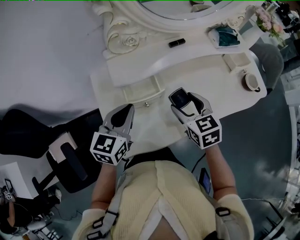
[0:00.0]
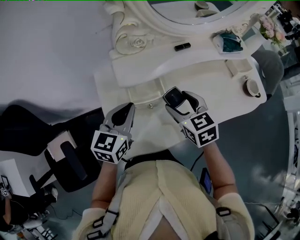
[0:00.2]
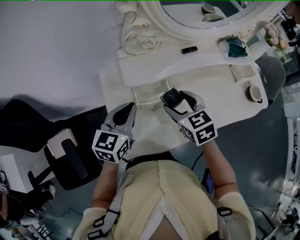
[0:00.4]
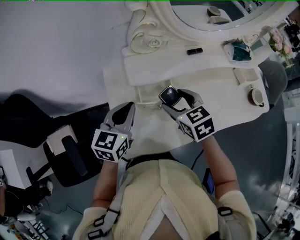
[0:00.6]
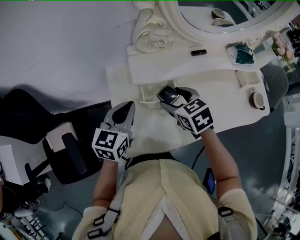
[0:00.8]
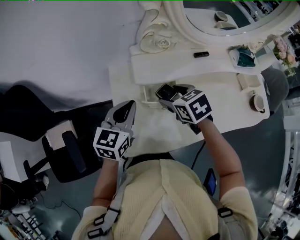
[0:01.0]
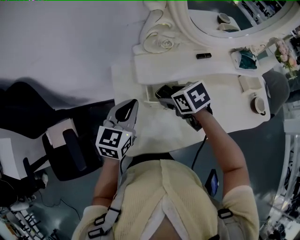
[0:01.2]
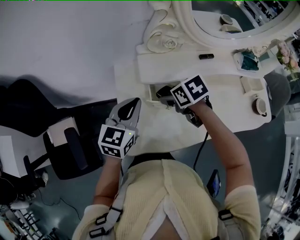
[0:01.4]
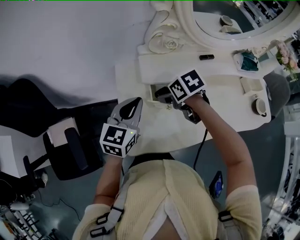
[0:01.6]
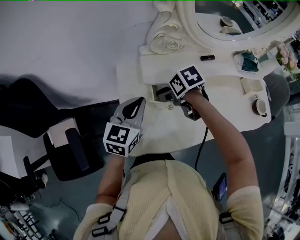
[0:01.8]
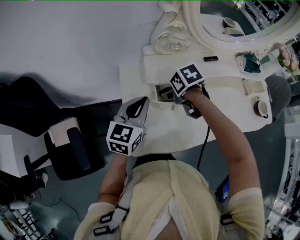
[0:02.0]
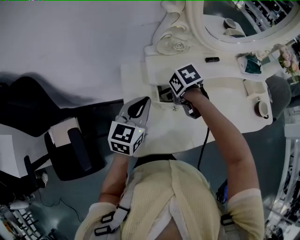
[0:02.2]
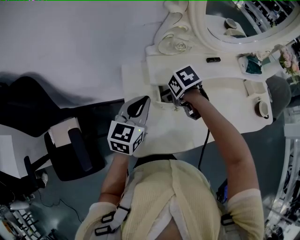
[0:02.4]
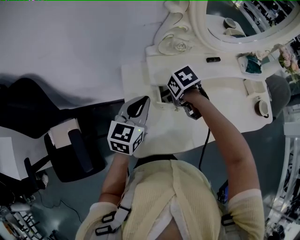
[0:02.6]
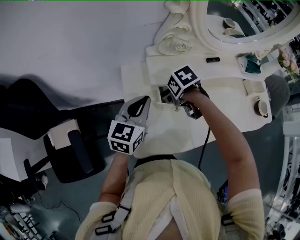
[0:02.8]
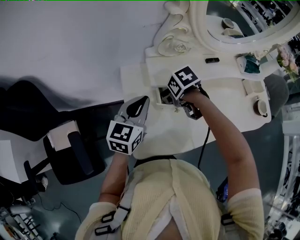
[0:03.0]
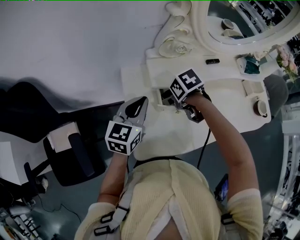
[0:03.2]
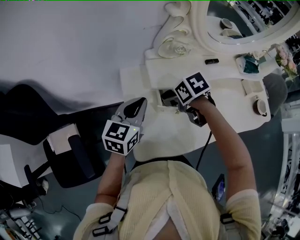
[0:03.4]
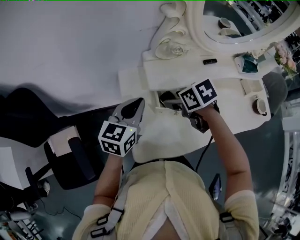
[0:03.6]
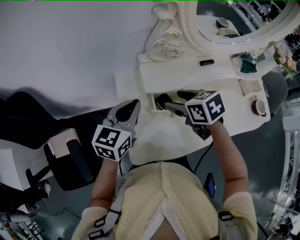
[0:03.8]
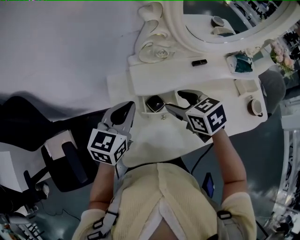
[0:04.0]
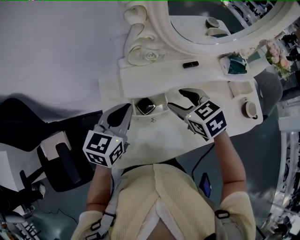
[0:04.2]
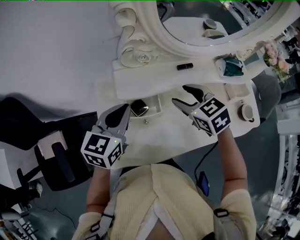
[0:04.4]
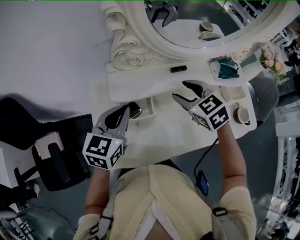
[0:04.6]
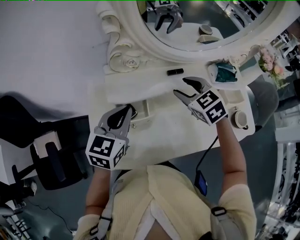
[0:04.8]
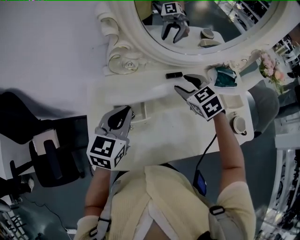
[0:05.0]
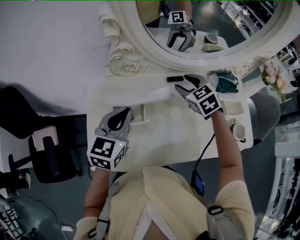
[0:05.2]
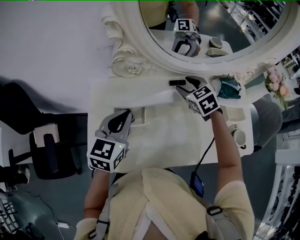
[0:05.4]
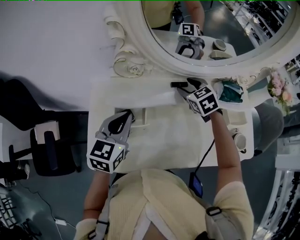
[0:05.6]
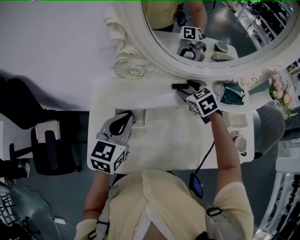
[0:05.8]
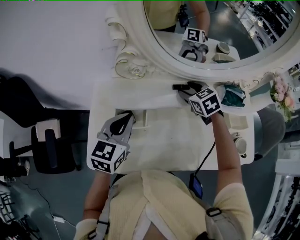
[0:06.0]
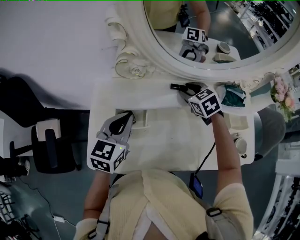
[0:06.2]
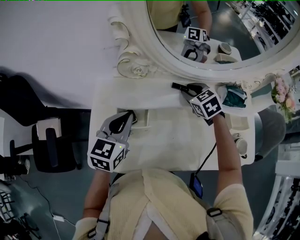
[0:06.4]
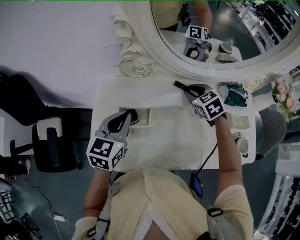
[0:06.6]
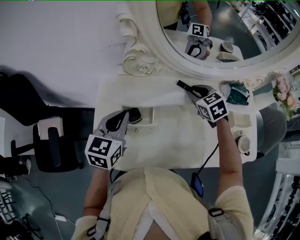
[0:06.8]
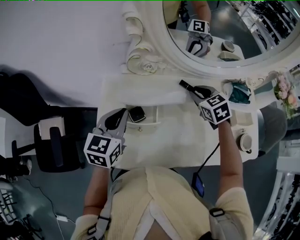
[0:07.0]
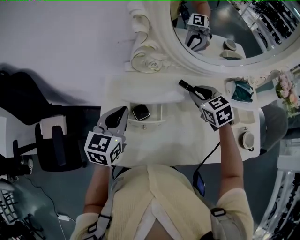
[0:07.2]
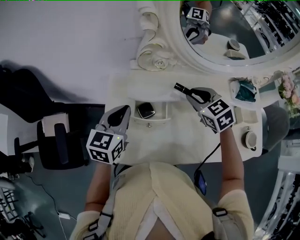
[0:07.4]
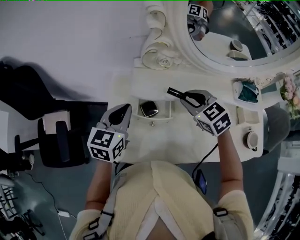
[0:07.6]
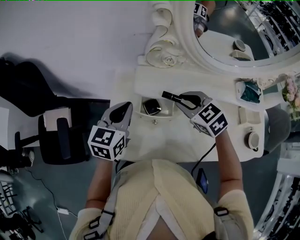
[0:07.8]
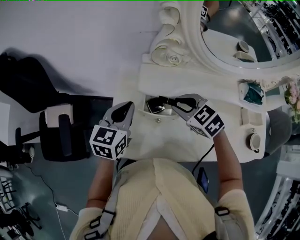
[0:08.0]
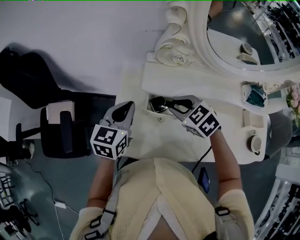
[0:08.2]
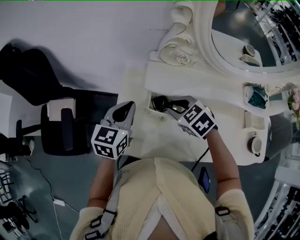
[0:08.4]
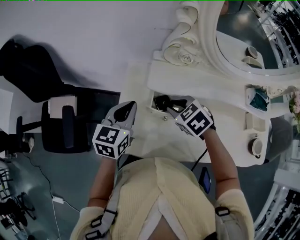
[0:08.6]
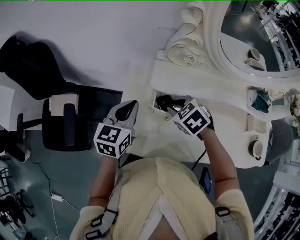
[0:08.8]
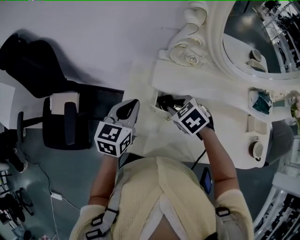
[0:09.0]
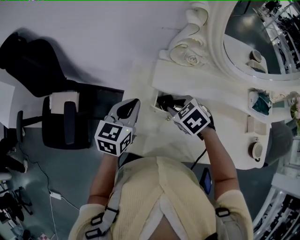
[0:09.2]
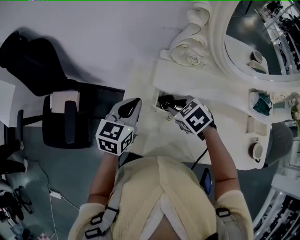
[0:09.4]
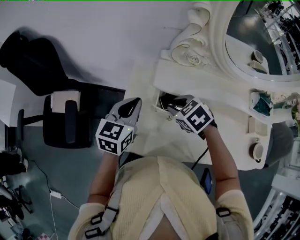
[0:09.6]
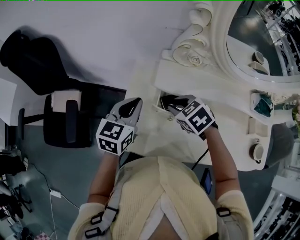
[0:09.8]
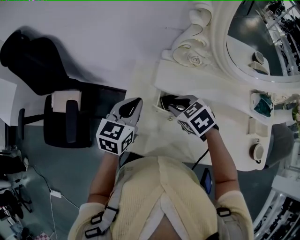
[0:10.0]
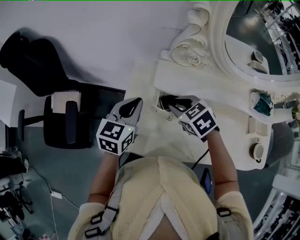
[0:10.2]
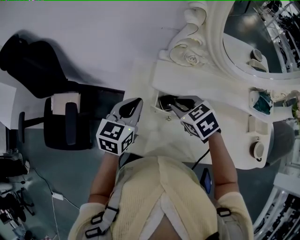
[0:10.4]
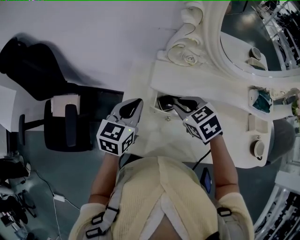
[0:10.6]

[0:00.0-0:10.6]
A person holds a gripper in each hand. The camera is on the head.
0:00.0 to 0:01.6: The right gripper changes place by roughly 15 cm, and turns by roughly 40 degrees, while the left gripper shifts by about 5 cm.
0:01.6 to 0:03.0: The grippers stay close to where they were, moving slightly.
0:03.0 to 0:04.6: The left gripper is displaced to the right by about 10 cm. Meanwhile the right gripper is displaced to the right and upward by approximately 20 cm, and angles its fingers upward, by approximately 30 degrees.
0:04.6 to 0:06.0: The right gripper shifts approximately 15 cm forward, downward and to the right.
0:06.0 to 0:07.6: The left gripper is displaced to the left by some 10 cm; the right gripper heads to the left and backward, covering approximately 15 cm, and closes up.
0:07.6 to 0:09.0: The right gripper heads to the left and downward, covering about 15 cm, and changes its angle by about 20 degrees, while the left gripper shifts by approximately 5 cm.
0:09.0 to 0:10.6: The grippers stay close to where they were, moving slightly.

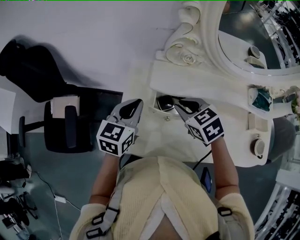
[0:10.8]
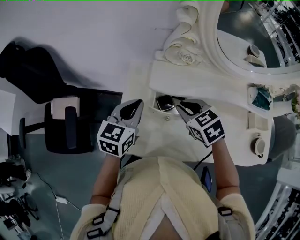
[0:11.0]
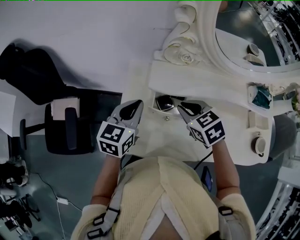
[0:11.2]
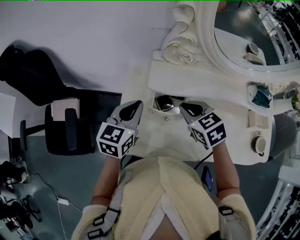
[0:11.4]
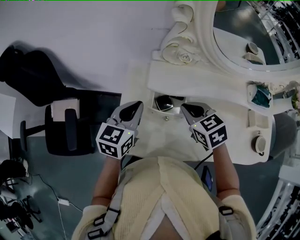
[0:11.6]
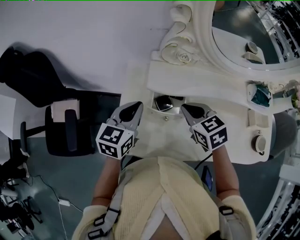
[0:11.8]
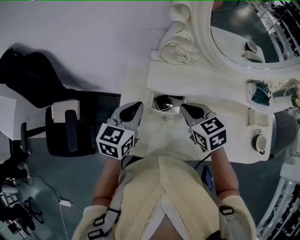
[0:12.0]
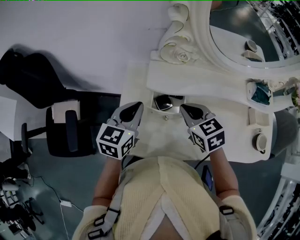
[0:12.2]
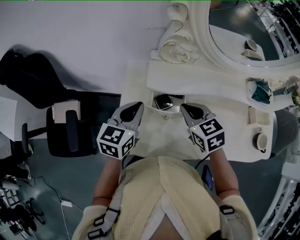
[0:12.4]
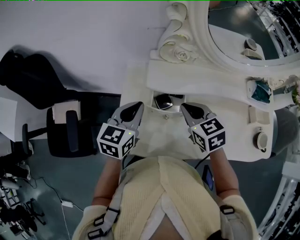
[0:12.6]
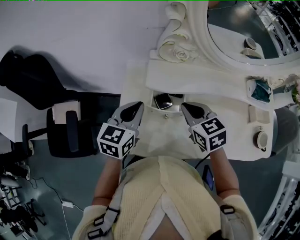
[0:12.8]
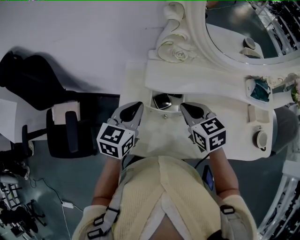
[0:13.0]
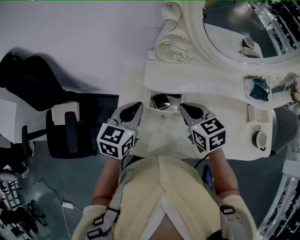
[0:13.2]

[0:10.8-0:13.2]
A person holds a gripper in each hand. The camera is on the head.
0:10.8 to 0:13.2: The grippers stay close to where they were, moving slightly.

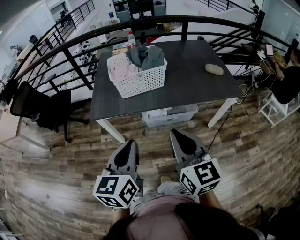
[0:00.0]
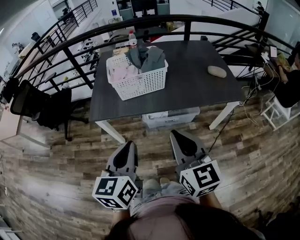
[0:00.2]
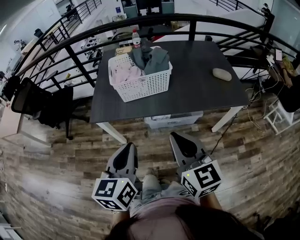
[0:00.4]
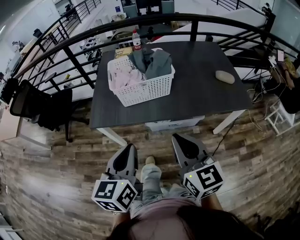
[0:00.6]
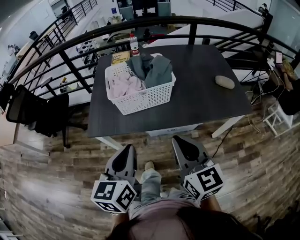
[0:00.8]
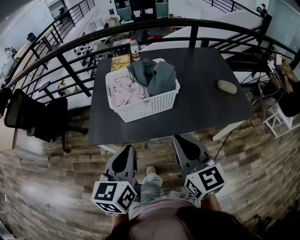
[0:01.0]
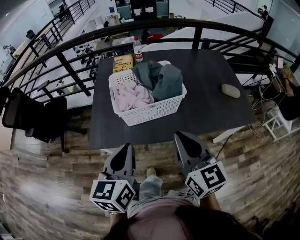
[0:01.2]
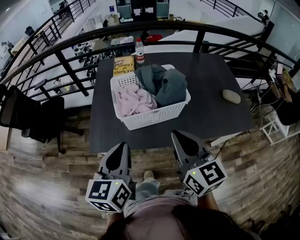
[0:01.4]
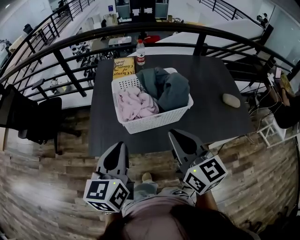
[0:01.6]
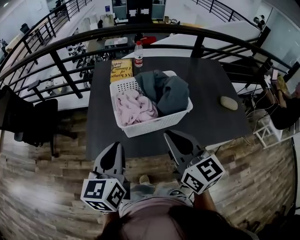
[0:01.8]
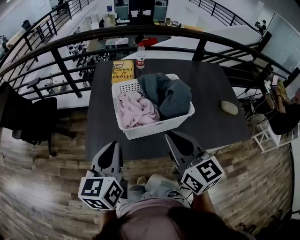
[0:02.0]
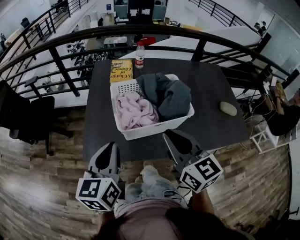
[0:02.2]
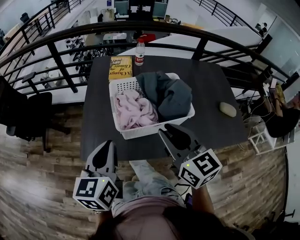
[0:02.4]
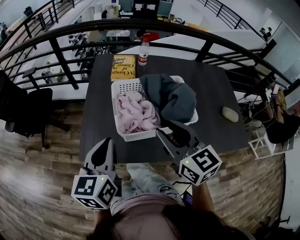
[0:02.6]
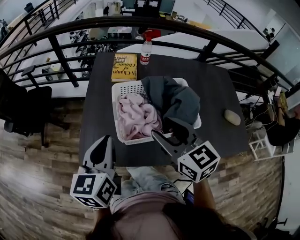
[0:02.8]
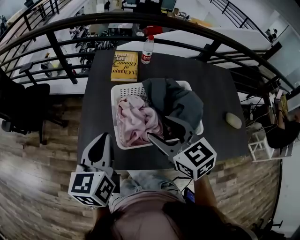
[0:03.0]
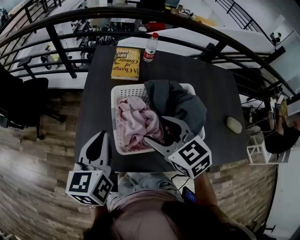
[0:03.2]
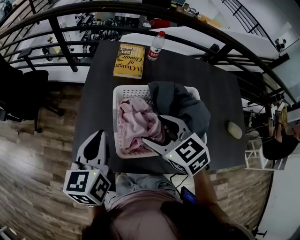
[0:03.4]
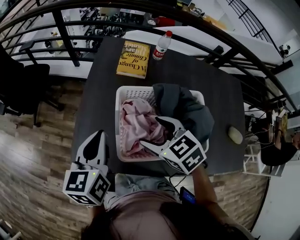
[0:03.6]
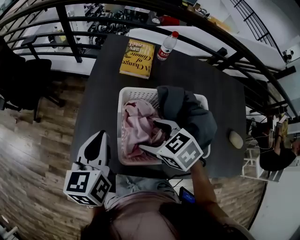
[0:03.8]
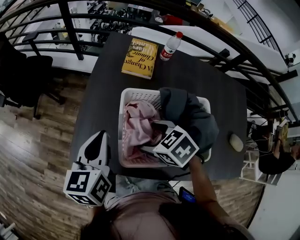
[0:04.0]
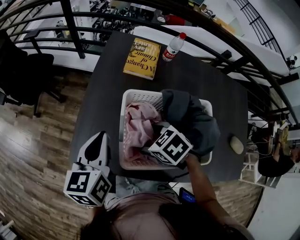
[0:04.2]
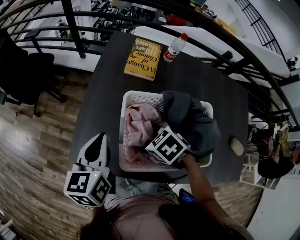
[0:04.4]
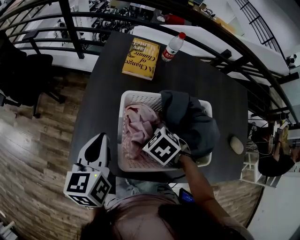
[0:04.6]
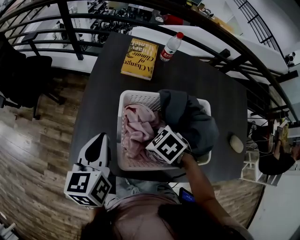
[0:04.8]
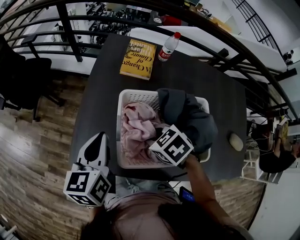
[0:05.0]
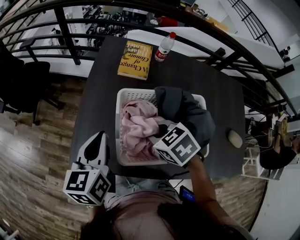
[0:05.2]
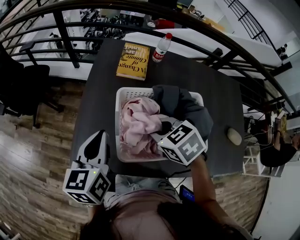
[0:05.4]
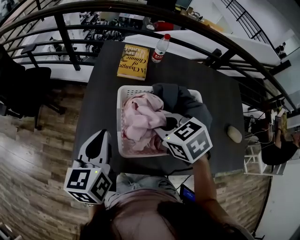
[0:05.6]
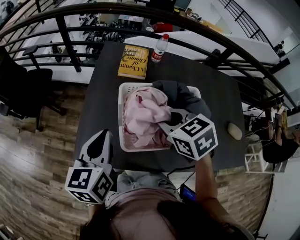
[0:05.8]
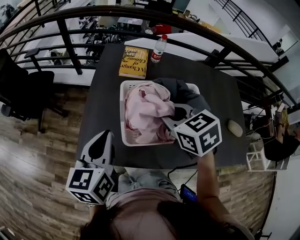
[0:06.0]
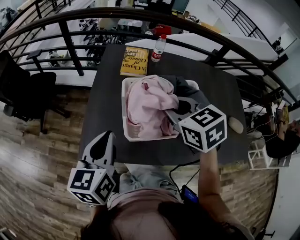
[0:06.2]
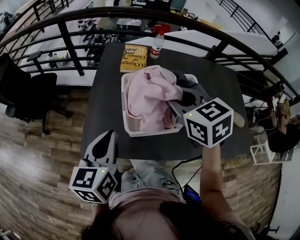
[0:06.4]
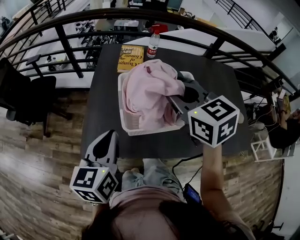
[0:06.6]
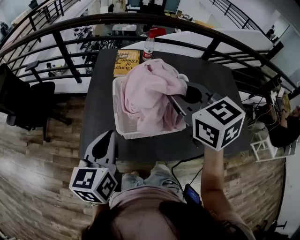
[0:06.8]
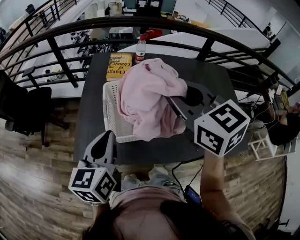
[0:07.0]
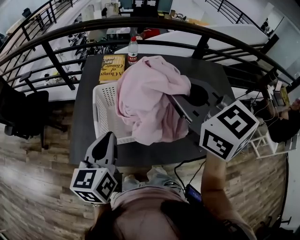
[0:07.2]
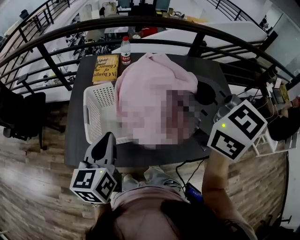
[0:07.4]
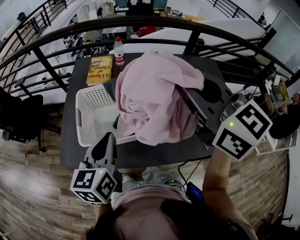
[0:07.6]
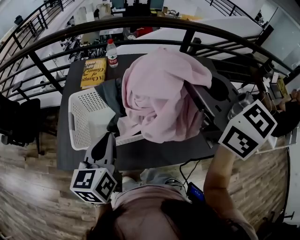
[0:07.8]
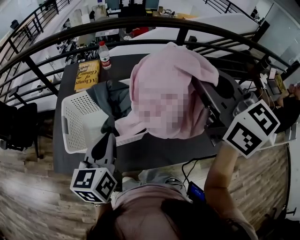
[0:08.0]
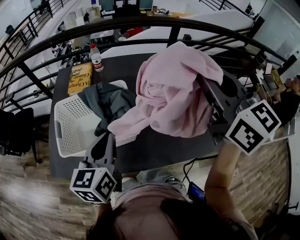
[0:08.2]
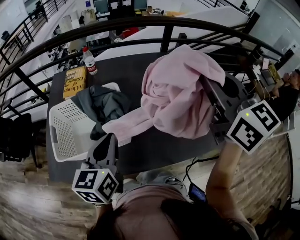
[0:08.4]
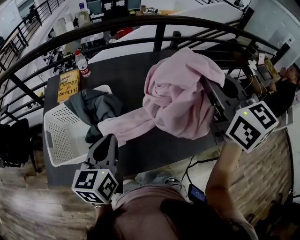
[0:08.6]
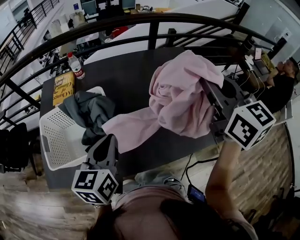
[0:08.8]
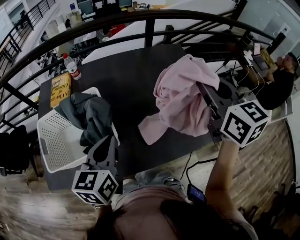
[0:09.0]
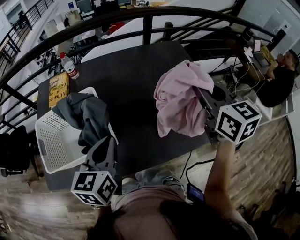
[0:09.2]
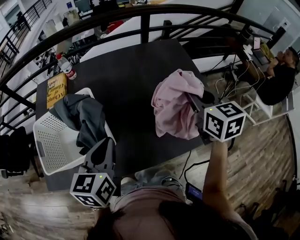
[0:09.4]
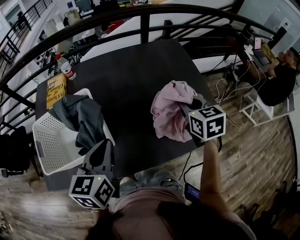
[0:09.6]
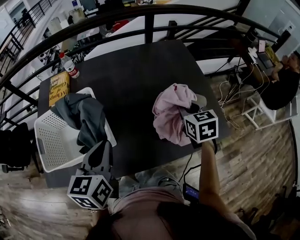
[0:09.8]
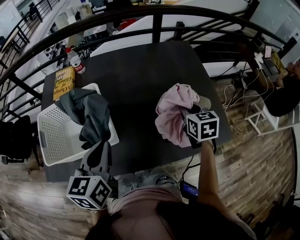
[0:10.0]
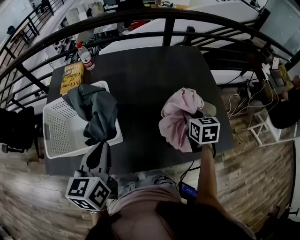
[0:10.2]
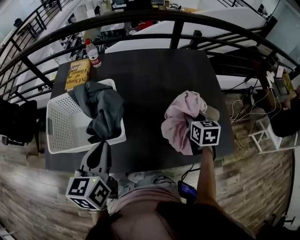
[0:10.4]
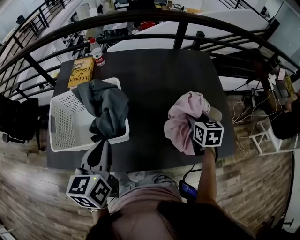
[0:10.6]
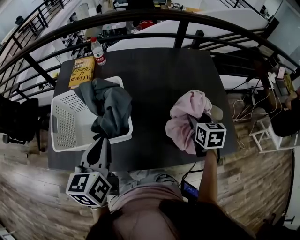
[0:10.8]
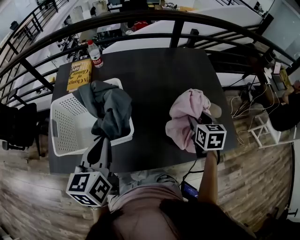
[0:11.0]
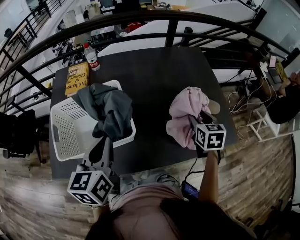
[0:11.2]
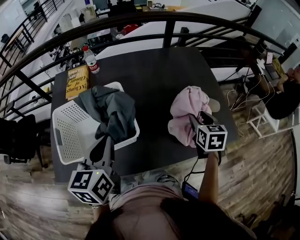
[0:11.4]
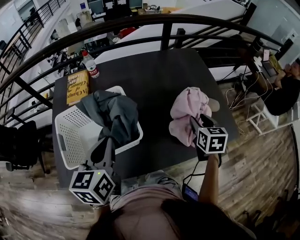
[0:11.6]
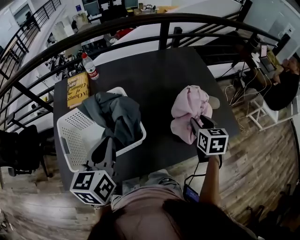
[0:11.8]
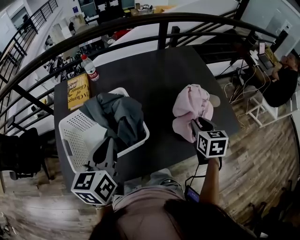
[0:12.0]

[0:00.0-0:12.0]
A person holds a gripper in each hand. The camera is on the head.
0:00.0 to 0:01.6: Both grippers move forward, approximately 30 cm.
0:01.6 to 0:03.0: The right gripper goes approximately 20 cm forward and downward, rotates some 30 degrees, and opens; the left gripper goes roughly 15 cm forward.
0:03.0 to 0:04.4: The left gripper moves about 10 cm, while the right gripper goes roughly 20 cm downward, and angles its fingers downward, by about 40 degrees.
0:04.4 to 0:06.0: The left gripper goes approximately 10 cm backward and upward. Meanwhile the right gripper travels upward by roughly 20 cm, swivels approximately 30 degrees, and closes its fingers.
0:06.0 to 0:07.6: The right gripper goes about 30 cm to the right and upward, and tilts its fingers some 30 degrees upward, while the left gripper goes approximately 20 cm to the right.
0:07.6 to 0:09.0: The left gripper goes roughly 20 cm to the right. The right gripper moves to the right, about 30 cm, and changes its angle by roughly 30 degrees.
0:09.0 to 0:10.4: The right gripper goes about 25 cm downward, and rotates roughly 30 degrees, while the left gripper changes place by some 5 cm.
0:10.4 to 0:12.0: The right gripper shifts approximately 10 cm backward. Meanwhile the left gripper shifts roughly 10 cm to the left.
